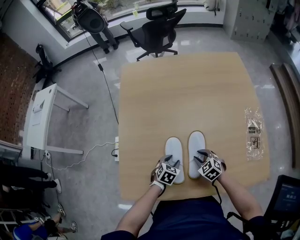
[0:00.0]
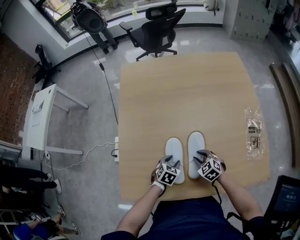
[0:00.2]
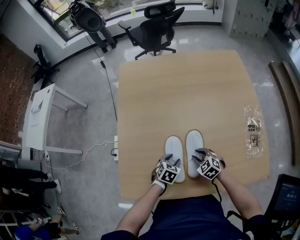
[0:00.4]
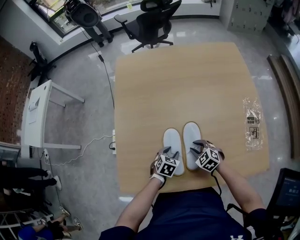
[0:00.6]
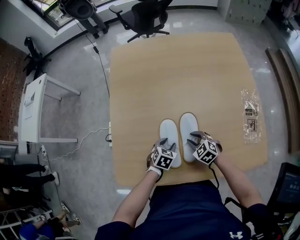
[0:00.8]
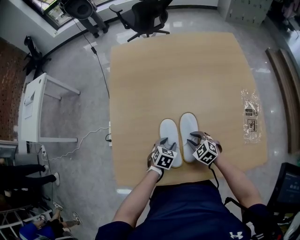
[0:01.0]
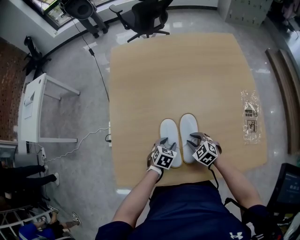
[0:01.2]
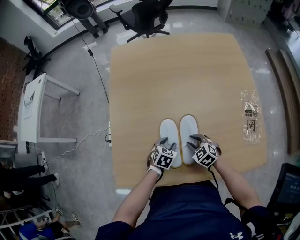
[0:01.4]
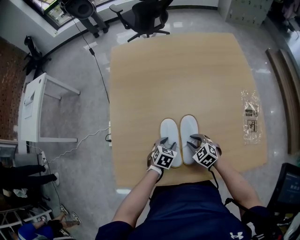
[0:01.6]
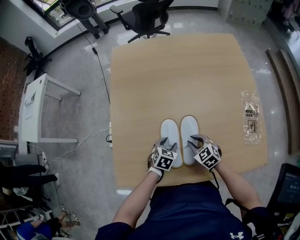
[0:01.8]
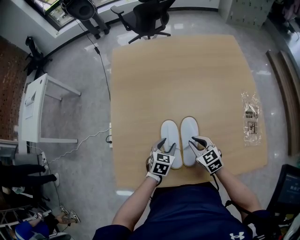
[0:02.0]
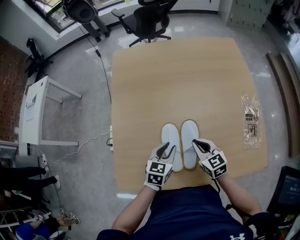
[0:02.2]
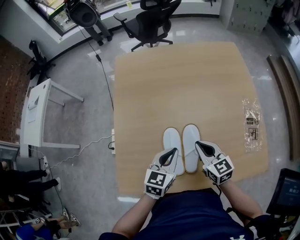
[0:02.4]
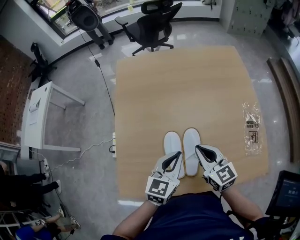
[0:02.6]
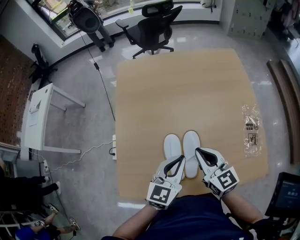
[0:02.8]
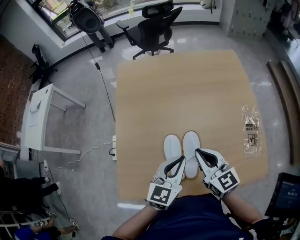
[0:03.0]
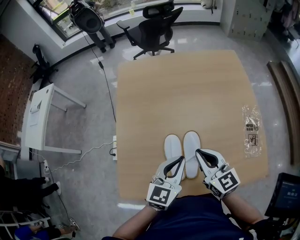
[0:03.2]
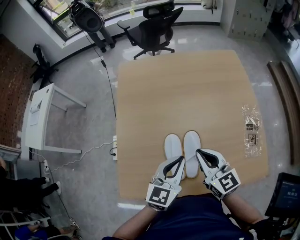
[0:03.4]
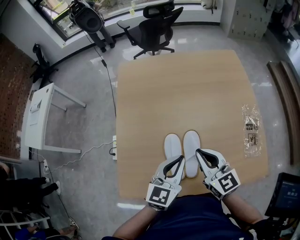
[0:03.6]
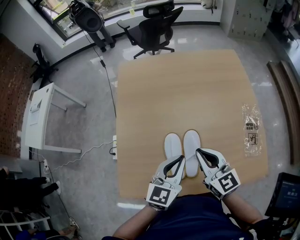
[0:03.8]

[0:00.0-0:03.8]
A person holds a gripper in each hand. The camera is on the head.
0:00.0 to 0:01.2: The grippers make only small movements.
0:01.2 to 0:02.6: Both grippers travel together upward, some 20 cm. The right gripper angles its fingers upward, by roughly 30 degrees, and closes its fingers; the left gripper angles its fingers upward, by roughly 40 degrees, and closes up.
0:02.6 to 0:03.8: The grippers stay close to where they were, moving slightly.

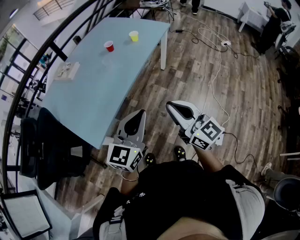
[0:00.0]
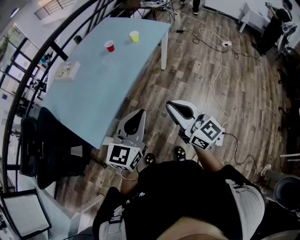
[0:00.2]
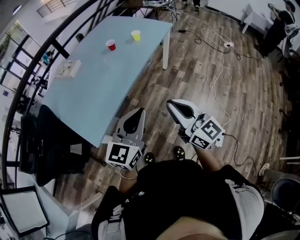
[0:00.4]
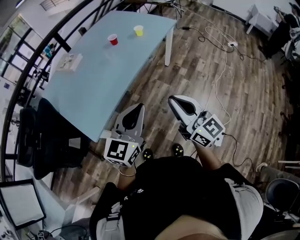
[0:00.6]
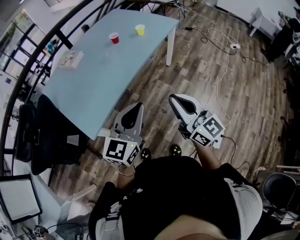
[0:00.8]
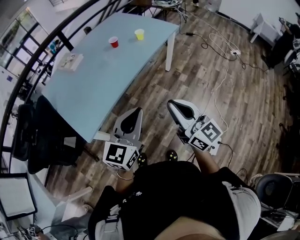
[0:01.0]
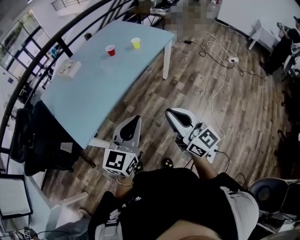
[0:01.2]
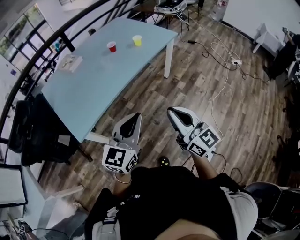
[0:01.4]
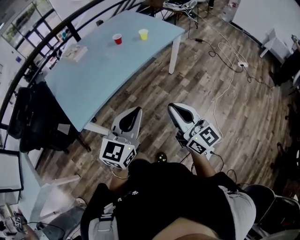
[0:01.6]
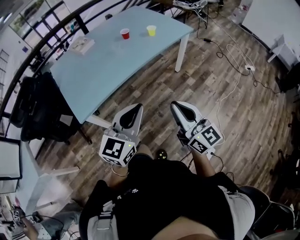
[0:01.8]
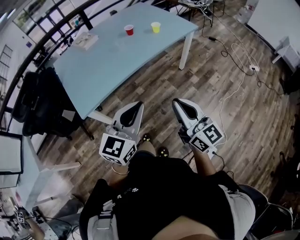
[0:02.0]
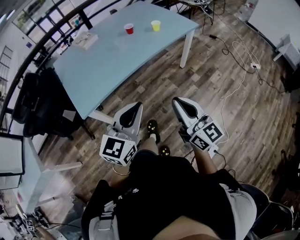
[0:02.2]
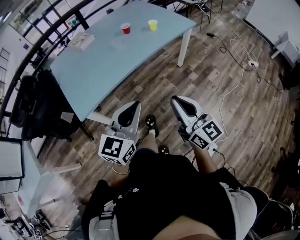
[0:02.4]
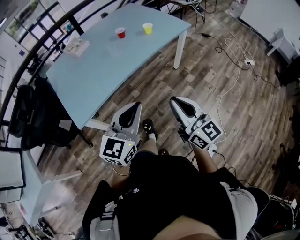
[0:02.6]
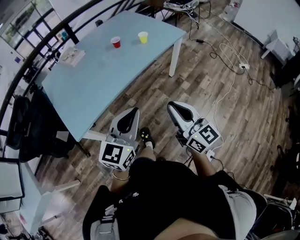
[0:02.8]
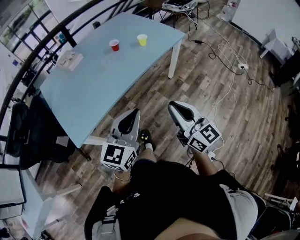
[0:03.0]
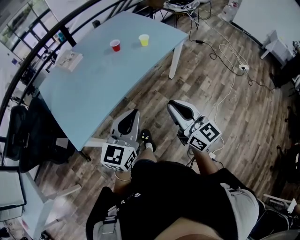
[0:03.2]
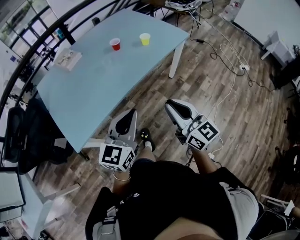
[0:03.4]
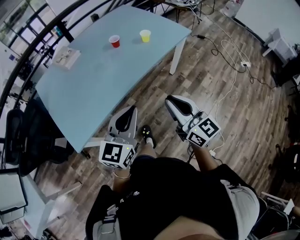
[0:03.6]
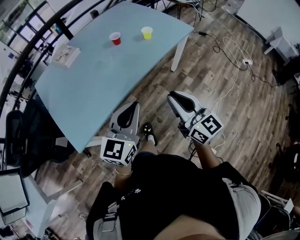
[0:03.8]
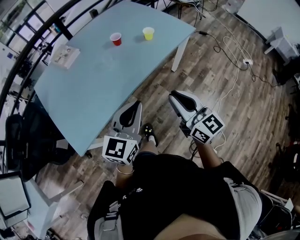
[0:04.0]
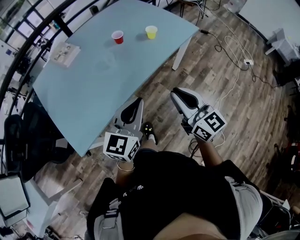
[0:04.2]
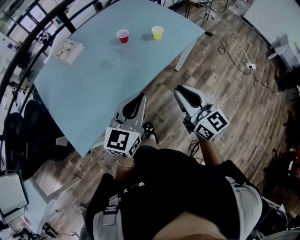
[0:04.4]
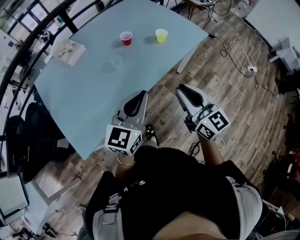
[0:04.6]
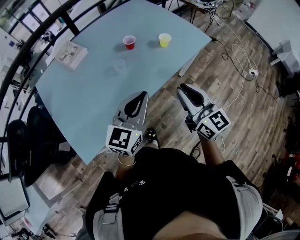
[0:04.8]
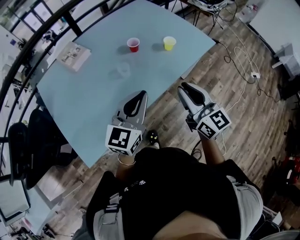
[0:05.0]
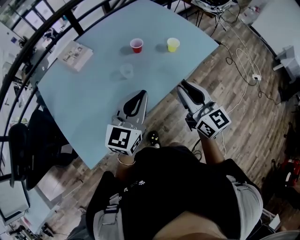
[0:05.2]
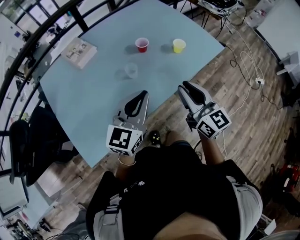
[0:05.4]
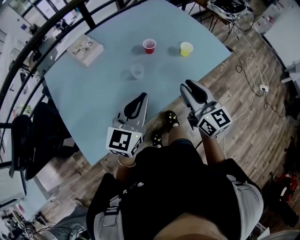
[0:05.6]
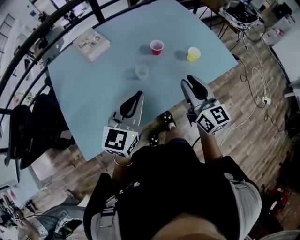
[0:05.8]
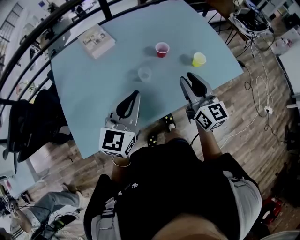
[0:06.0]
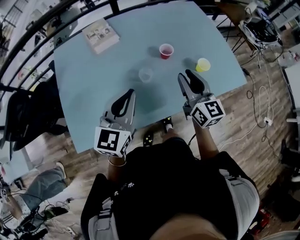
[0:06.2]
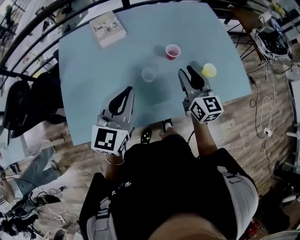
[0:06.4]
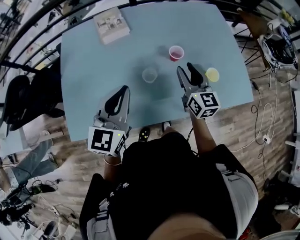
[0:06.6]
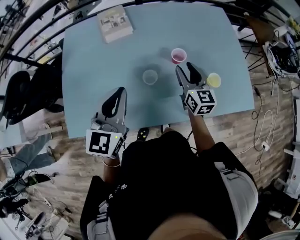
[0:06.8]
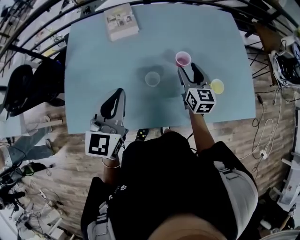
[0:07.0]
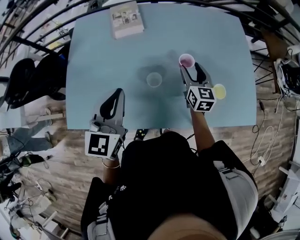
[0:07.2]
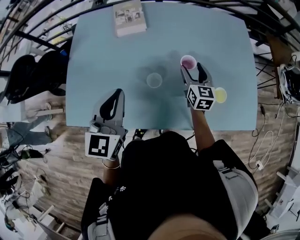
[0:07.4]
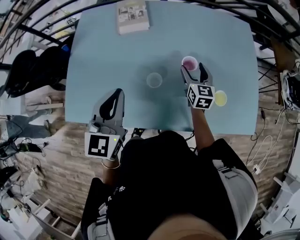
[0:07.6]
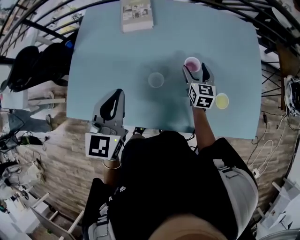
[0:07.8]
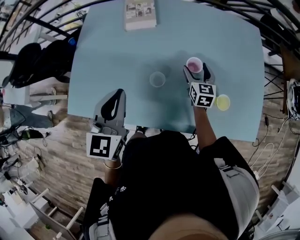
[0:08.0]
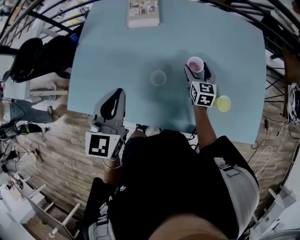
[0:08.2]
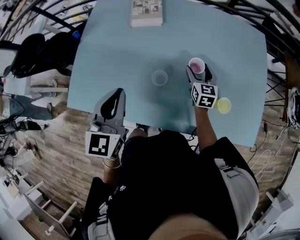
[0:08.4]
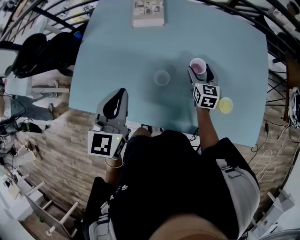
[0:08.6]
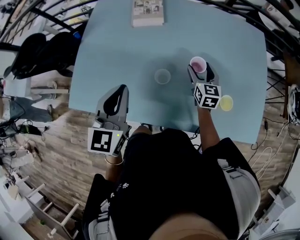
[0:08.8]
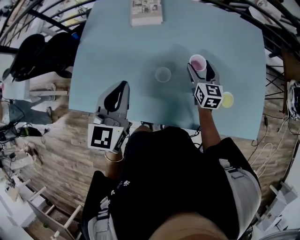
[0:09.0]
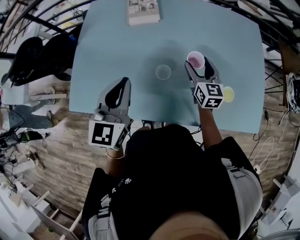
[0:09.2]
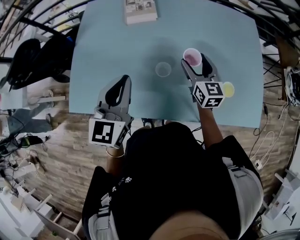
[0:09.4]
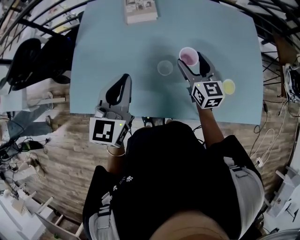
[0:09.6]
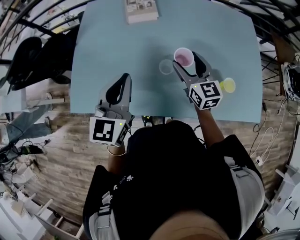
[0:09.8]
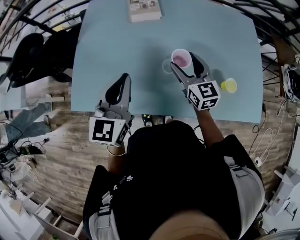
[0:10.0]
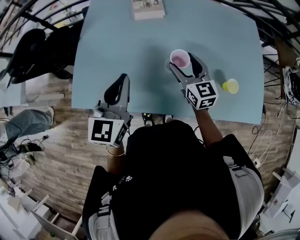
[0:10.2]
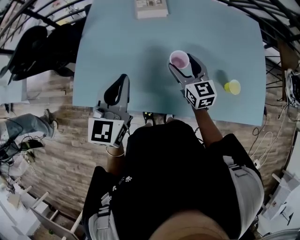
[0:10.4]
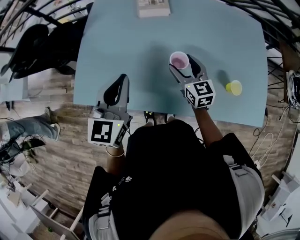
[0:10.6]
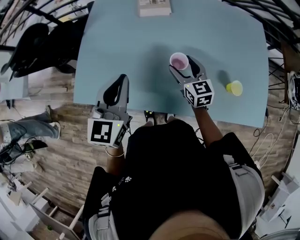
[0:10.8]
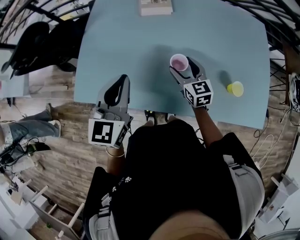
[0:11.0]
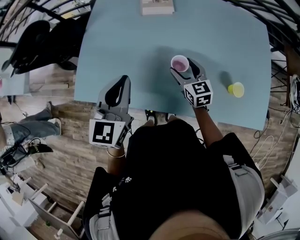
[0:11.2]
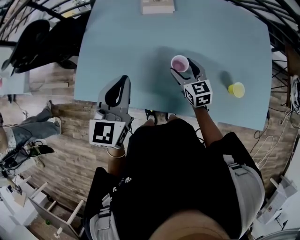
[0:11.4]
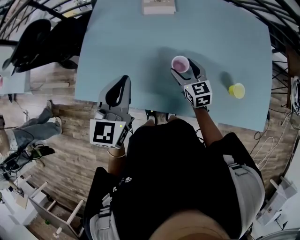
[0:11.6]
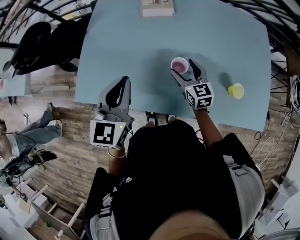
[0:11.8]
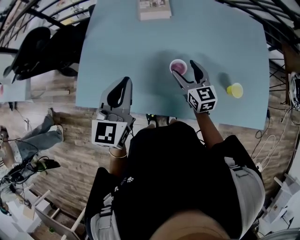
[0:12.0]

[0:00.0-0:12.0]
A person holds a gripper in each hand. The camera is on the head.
0:00.0 to 0:01.6: Both grippers travel together to the right, roughly 15 cm.
0:01.6 to 0:03.0: Both grippers travel together forward, about 10 cm.
0:03.0 to 0:04.4: Both grippers travel together forward, approximately 20 cm.
0:04.4 to 0:06.0: The right gripper moves forward, about 25 cm. Meanwhile the left gripper moves forward and to the left, roughly 20 cm, and changes its angle by about 20 degrees.
0:06.0 to 0:07.6: The right gripper travels forward and downward by some 30 cm, turns by about 20 degrees, and opens; the left gripper moves forward, approximately 10 cm, and rotates some 40 degrees.
0:07.6 to 0:09.0: The grippers make only small movements.
0:09.0 to 0:10.4: The left gripper heads to the left, covering about 5 cm, while the right gripper goes about 15 cm to the left and backward.

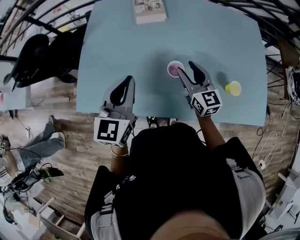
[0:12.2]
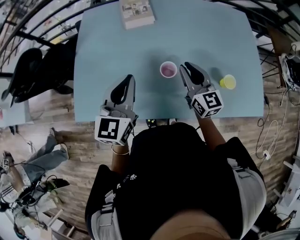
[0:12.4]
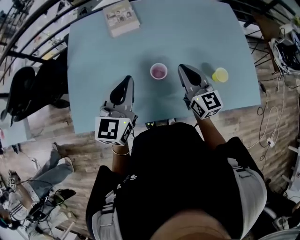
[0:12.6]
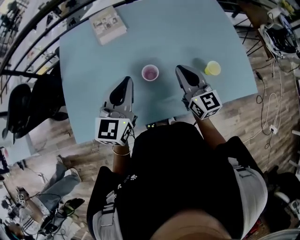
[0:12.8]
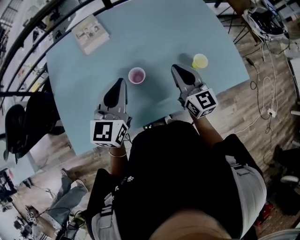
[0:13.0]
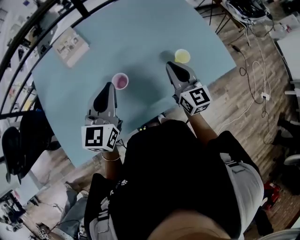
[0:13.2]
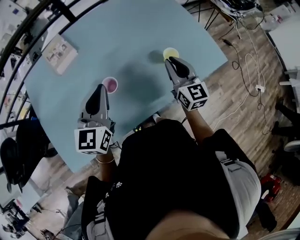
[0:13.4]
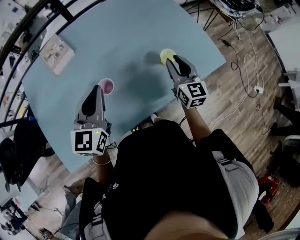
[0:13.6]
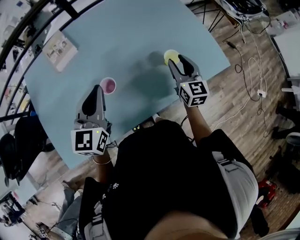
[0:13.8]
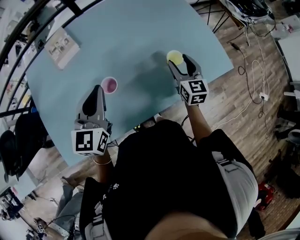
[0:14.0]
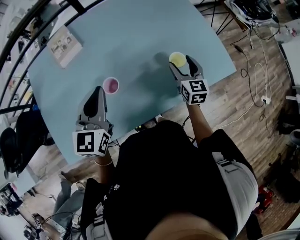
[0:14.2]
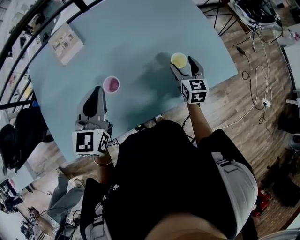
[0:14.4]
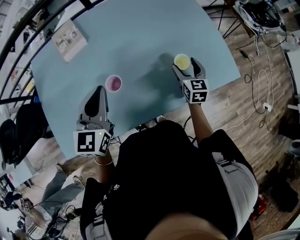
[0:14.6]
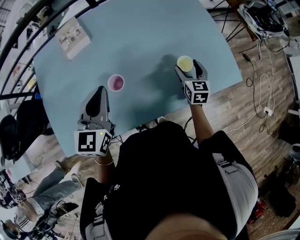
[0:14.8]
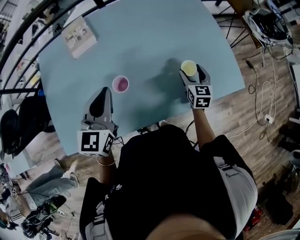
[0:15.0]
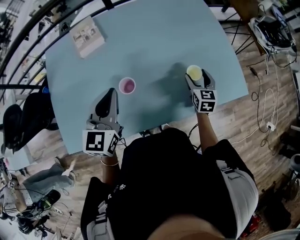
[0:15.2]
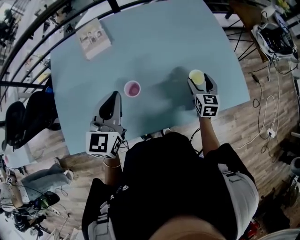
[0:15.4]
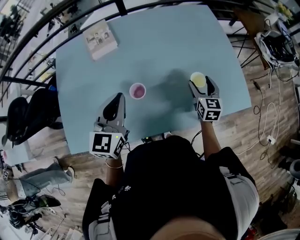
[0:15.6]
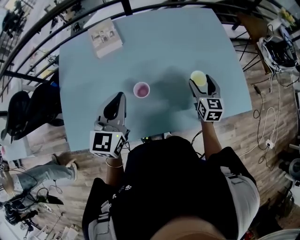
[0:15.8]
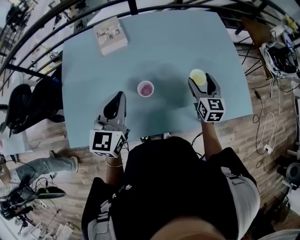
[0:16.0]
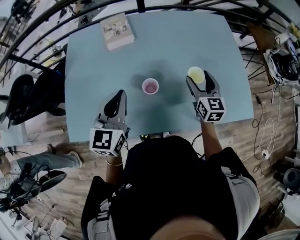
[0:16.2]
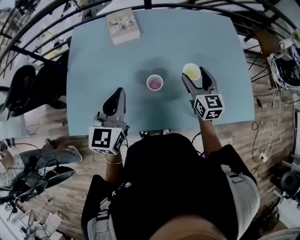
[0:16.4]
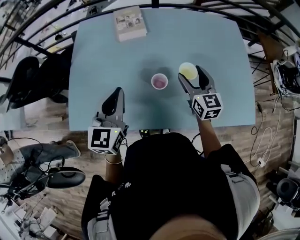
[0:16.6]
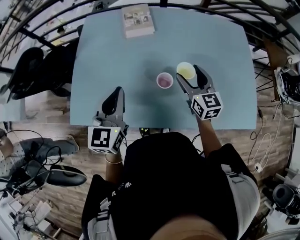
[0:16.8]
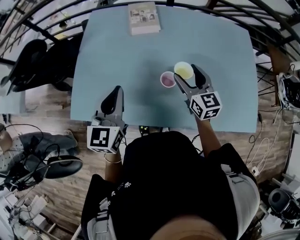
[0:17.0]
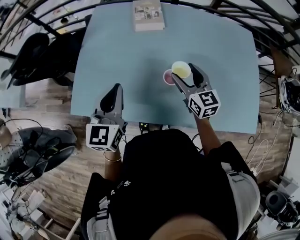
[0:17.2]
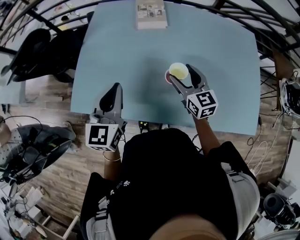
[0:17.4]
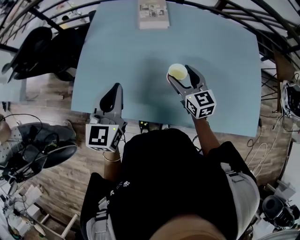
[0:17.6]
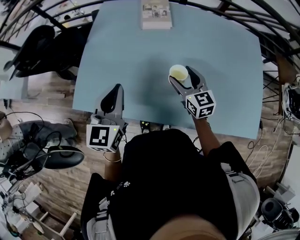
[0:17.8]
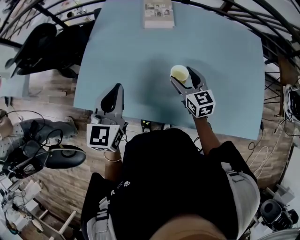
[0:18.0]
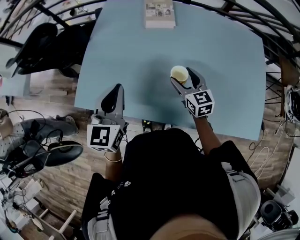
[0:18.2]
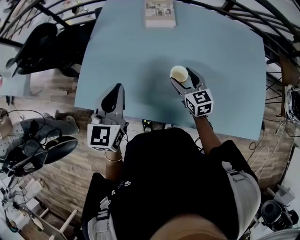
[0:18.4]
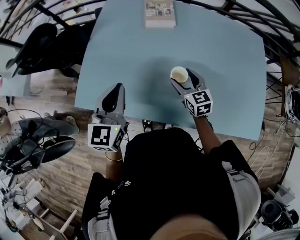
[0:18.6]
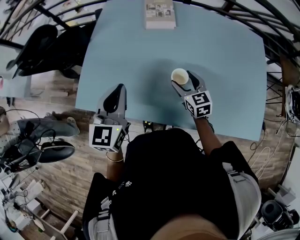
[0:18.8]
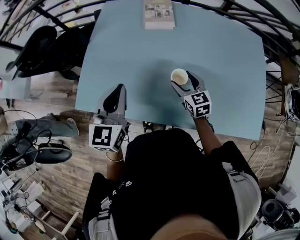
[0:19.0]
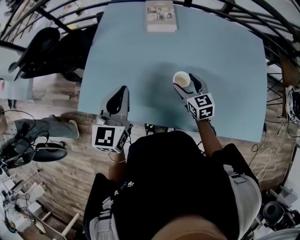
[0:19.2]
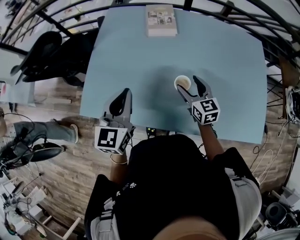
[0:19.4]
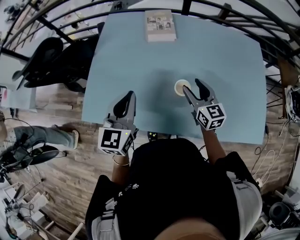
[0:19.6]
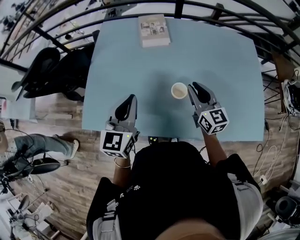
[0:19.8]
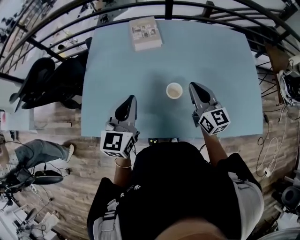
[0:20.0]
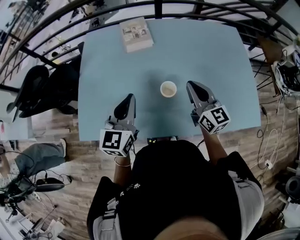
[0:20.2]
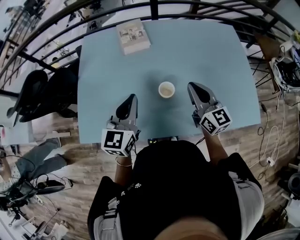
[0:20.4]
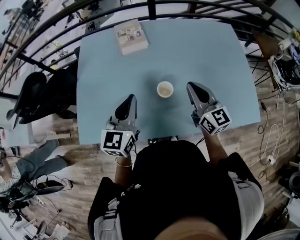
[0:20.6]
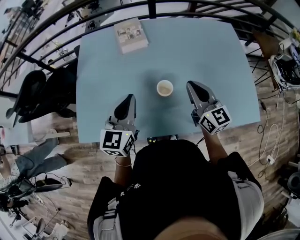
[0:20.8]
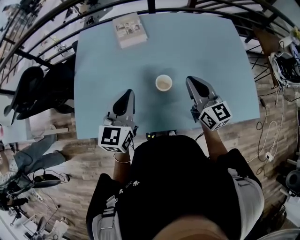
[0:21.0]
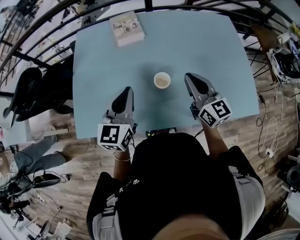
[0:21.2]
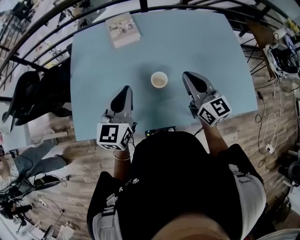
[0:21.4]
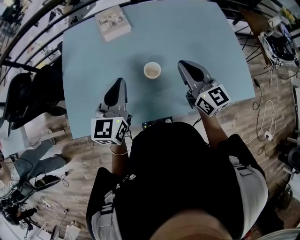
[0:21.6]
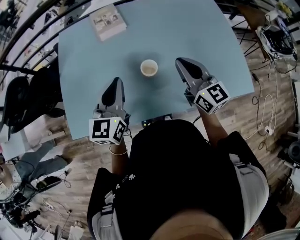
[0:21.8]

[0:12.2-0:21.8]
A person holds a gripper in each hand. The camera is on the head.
0:12.2 to 0:13.8: The right gripper changes place by some 30 cm, swivels about 40 degrees, and closes, then reopens; the left gripper changes place by roughly 20 cm, and swivels about 30 degrees.
0:13.8 to 0:15.4: The right gripper goes some 5 cm downward, and opens up.
0:15.4 to 0:17.0: The right gripper moves roughly 30 cm, and rotates roughly 40 degrees; the left gripper changes place by some 15 cm, and turns by about 20 degrees.
0:17.0 to 0:18.6: The right gripper goes roughly 10 cm downward and to the left.
0:18.6 to 0:20.2: The right gripper goes approximately 15 cm upward and to the right, rotates about 30 degrees, and closes its fingers, while the left gripper moves to the right, some 5 cm.
0:20.2 to 0:21.8: The grippers stay close to where they were, moving slightly.
